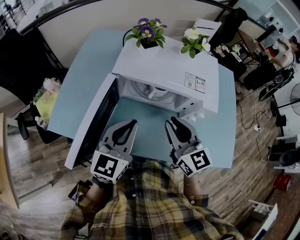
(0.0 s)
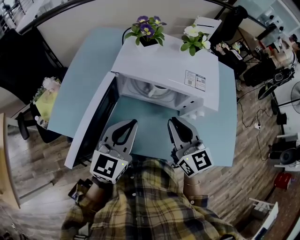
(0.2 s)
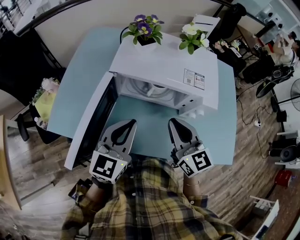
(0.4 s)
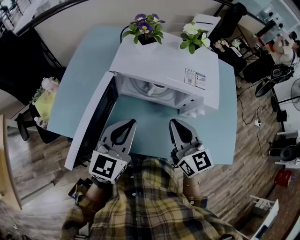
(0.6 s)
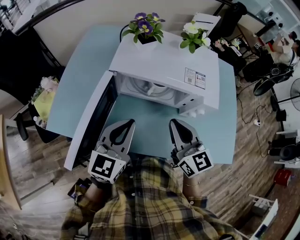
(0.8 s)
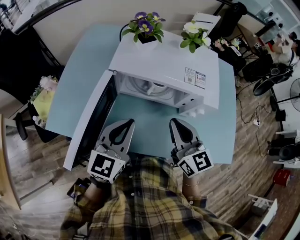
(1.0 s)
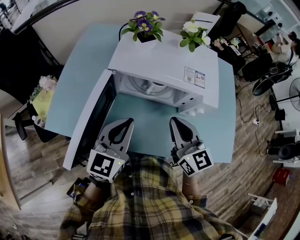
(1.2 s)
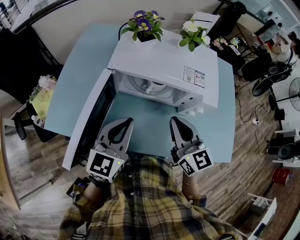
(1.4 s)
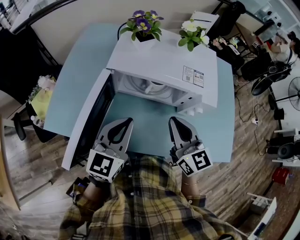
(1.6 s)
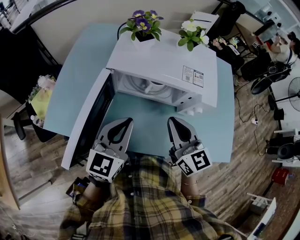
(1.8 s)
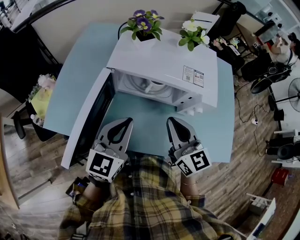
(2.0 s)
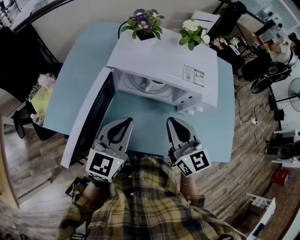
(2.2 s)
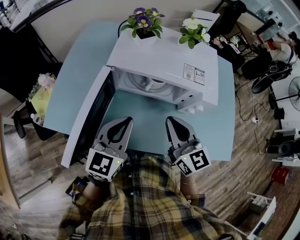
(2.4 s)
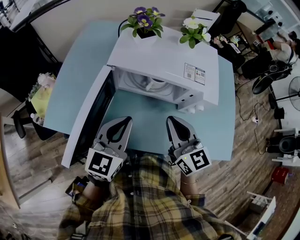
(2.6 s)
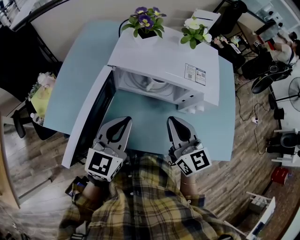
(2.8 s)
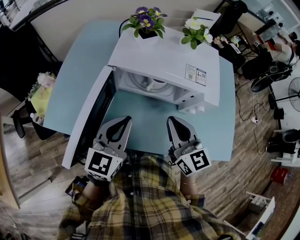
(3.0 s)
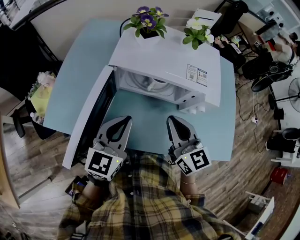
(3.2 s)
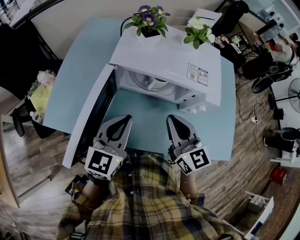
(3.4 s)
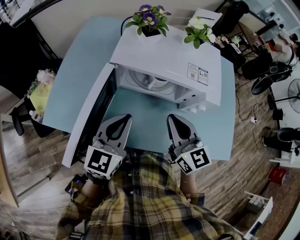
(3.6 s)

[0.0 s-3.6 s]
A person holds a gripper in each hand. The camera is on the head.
0.0 to 3.6 s: The grippers stay close to where they were, moving slightly.

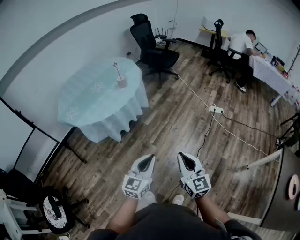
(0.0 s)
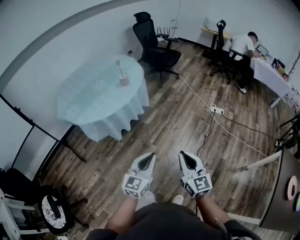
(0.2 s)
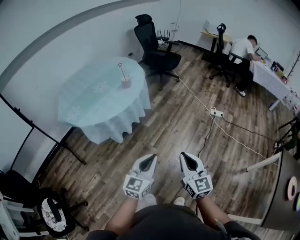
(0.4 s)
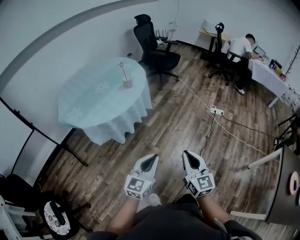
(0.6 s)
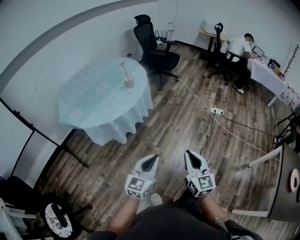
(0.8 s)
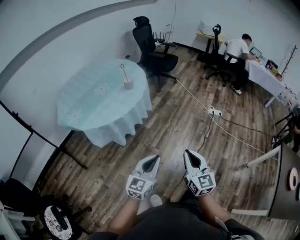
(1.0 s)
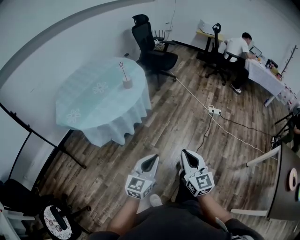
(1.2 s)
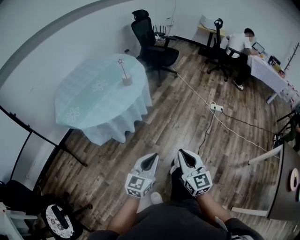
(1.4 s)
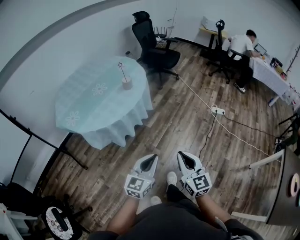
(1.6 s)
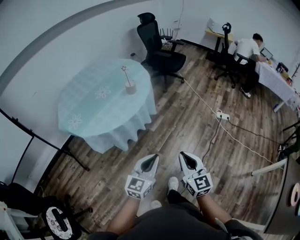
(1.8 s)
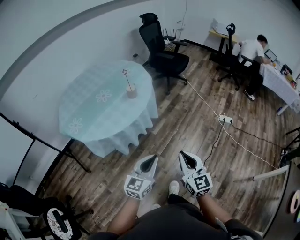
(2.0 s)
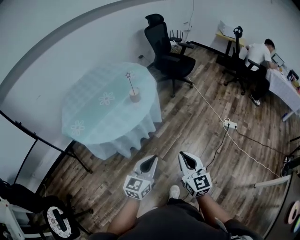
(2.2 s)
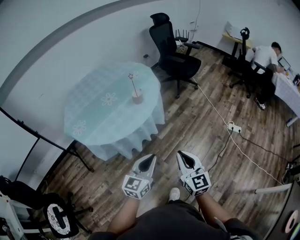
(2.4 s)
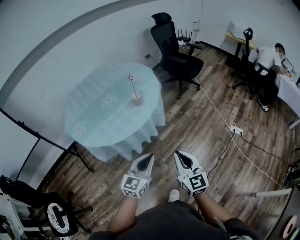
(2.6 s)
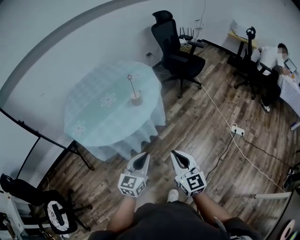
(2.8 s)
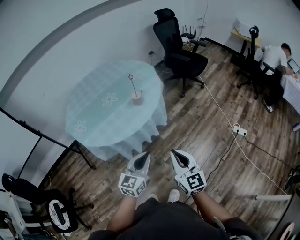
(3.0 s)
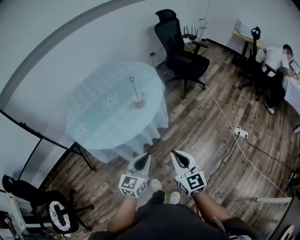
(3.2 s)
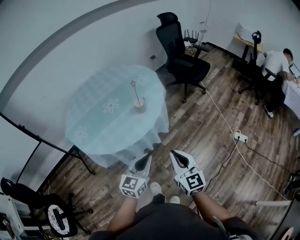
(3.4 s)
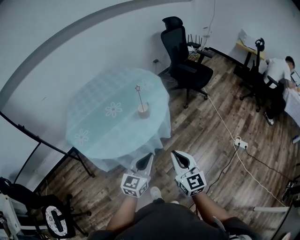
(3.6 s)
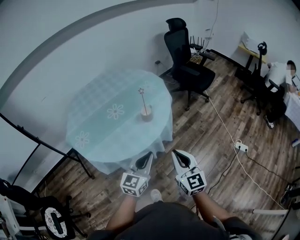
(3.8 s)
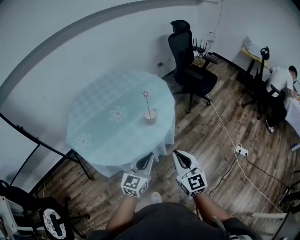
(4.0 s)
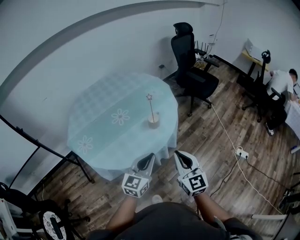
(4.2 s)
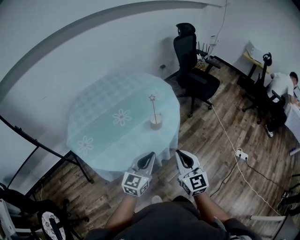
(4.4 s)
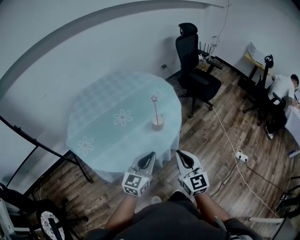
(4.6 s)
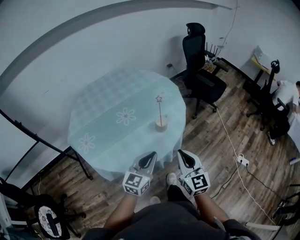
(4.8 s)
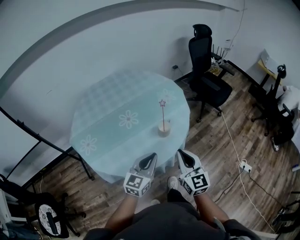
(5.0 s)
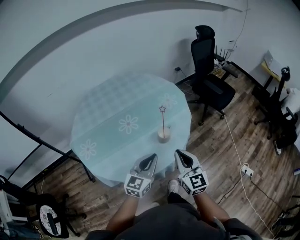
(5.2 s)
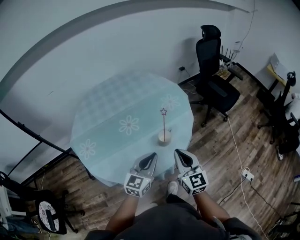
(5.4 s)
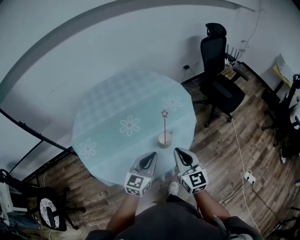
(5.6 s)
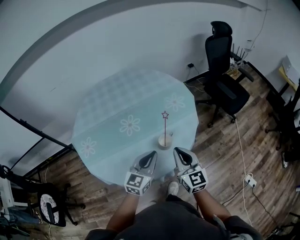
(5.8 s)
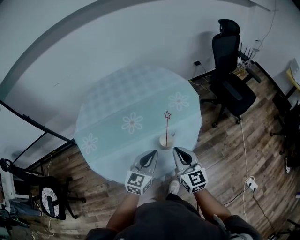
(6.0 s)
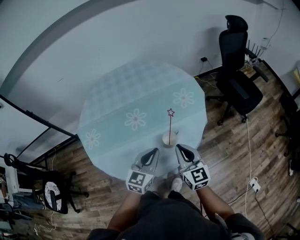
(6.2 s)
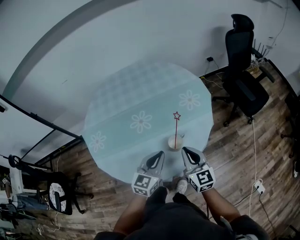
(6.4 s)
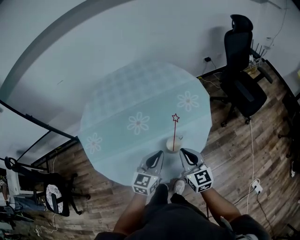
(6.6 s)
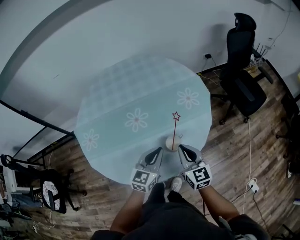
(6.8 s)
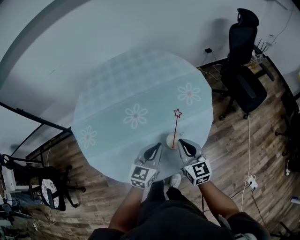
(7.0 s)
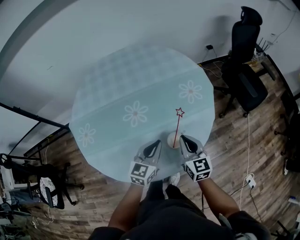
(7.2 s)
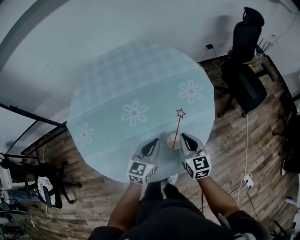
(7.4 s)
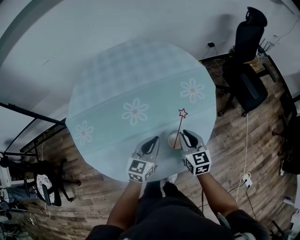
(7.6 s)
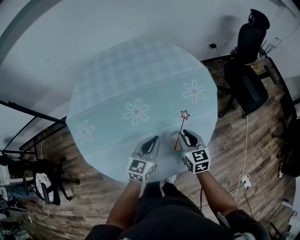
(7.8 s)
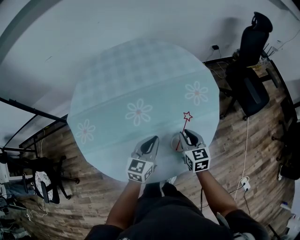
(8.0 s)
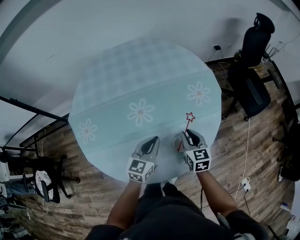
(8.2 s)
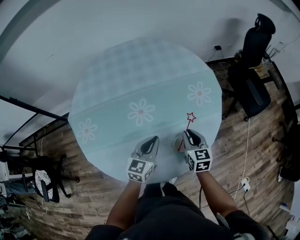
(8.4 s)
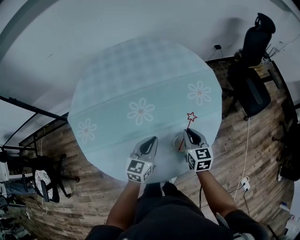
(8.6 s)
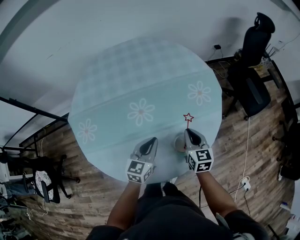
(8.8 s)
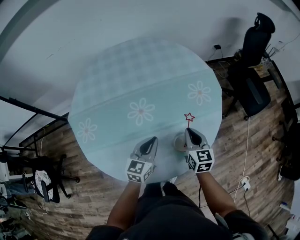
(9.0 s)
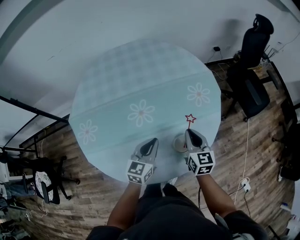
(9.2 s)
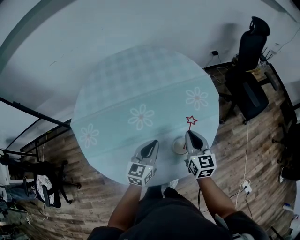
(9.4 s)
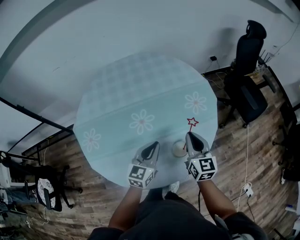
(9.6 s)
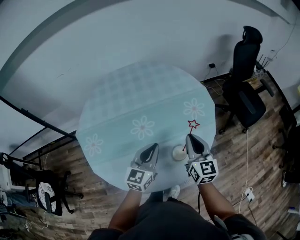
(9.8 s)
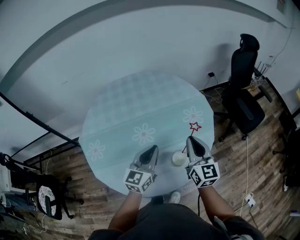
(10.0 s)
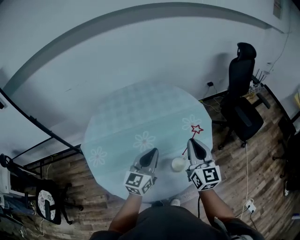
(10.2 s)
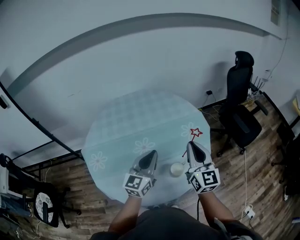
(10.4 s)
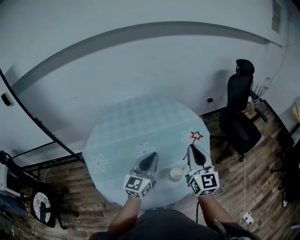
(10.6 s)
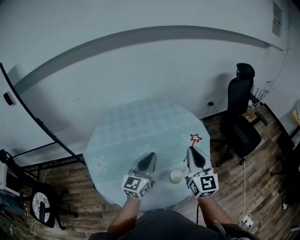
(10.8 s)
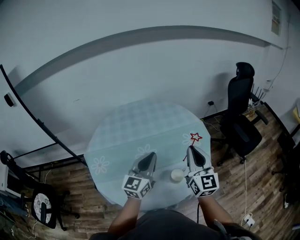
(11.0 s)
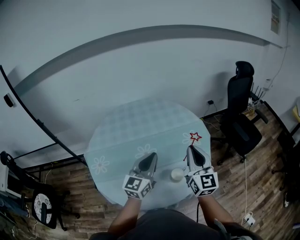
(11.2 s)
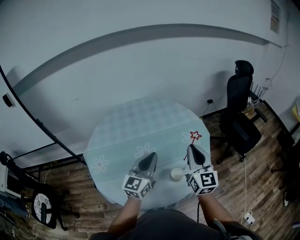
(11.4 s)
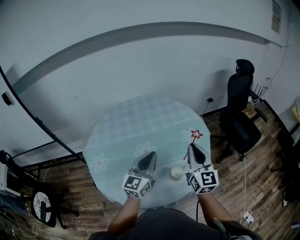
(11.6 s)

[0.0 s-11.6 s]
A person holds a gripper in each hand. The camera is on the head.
0.0 to 1.4 s: Both grippers move to the left, roughly 10 cm.
1.4 to 2.8 s: Both grippers travel together forward, some 30 cm.
2.8 to 4.4 s: The two grippers go some 25 cm forward and to the left.
4.4 to 5.8 s: The grippers both shift forward by some 20 cm.
5.8 to 7.2 s: The two grippers go about 15 cm forward and downward.
7.2 to 8.8 s: The left gripper goes approximately 5 cm to the left. The right gripper is displaced forward by some 5 cm.
8.8 to 10.2 s: Both grippers move upward, roughly 20 cm. The right gripper changes its angle by some 30 degrees.
10.2 to 11.6 s: The left gripper is displaced upward by roughly 5 cm.

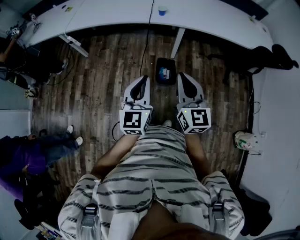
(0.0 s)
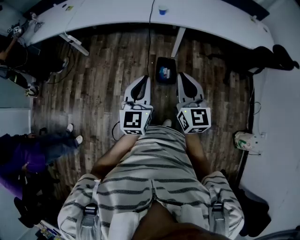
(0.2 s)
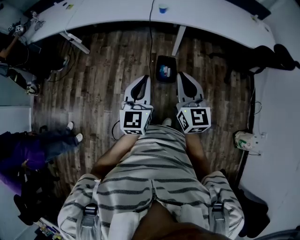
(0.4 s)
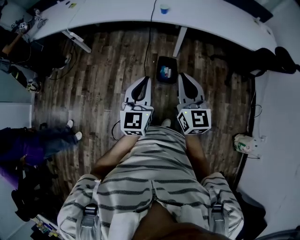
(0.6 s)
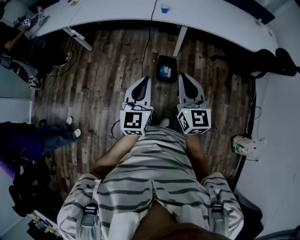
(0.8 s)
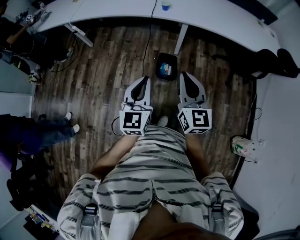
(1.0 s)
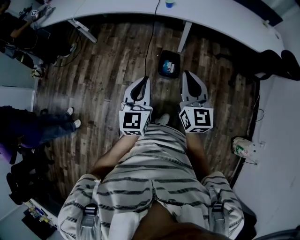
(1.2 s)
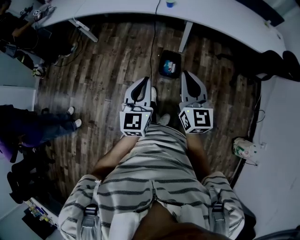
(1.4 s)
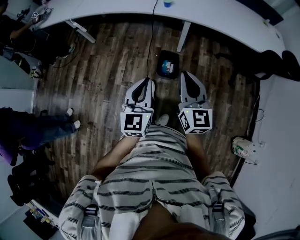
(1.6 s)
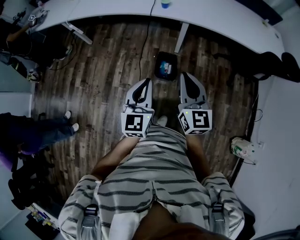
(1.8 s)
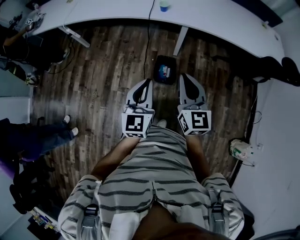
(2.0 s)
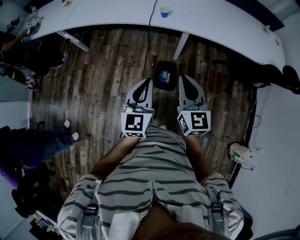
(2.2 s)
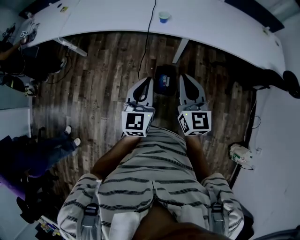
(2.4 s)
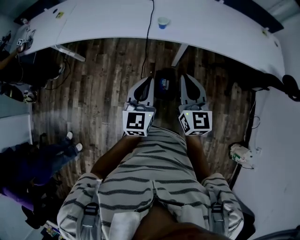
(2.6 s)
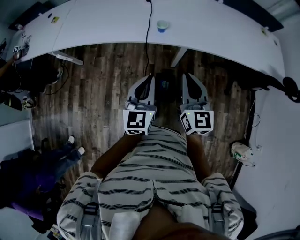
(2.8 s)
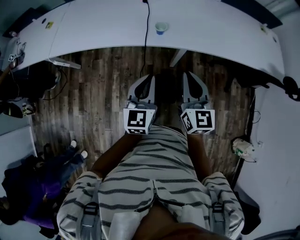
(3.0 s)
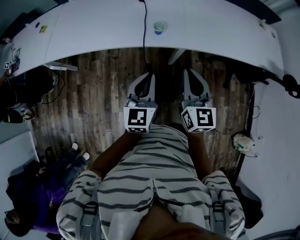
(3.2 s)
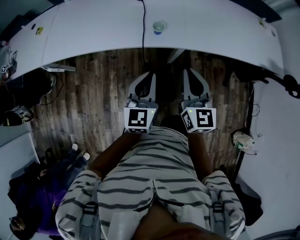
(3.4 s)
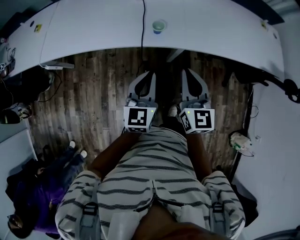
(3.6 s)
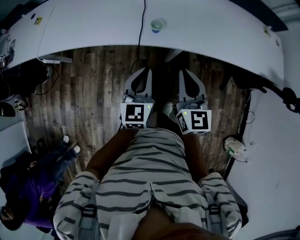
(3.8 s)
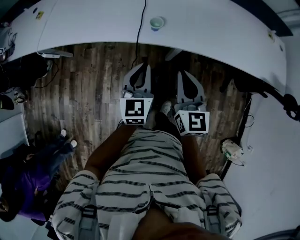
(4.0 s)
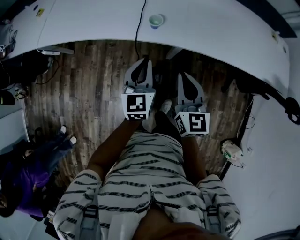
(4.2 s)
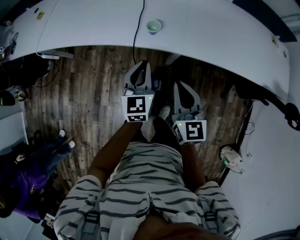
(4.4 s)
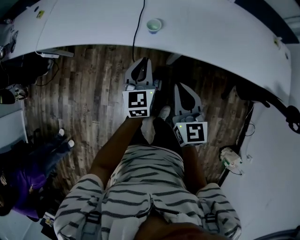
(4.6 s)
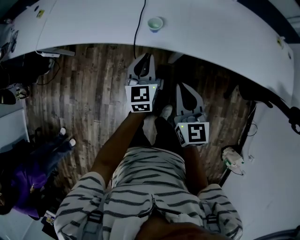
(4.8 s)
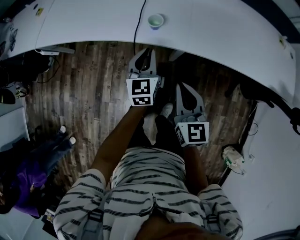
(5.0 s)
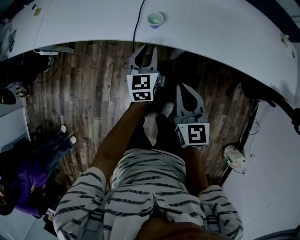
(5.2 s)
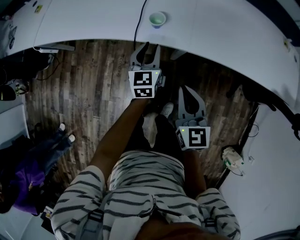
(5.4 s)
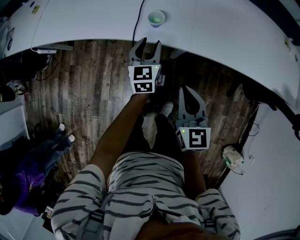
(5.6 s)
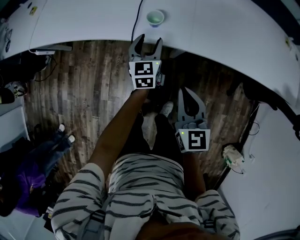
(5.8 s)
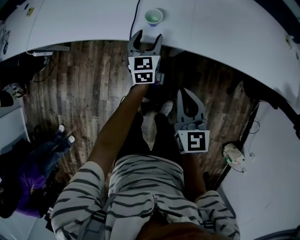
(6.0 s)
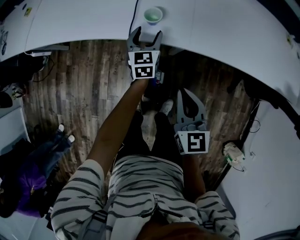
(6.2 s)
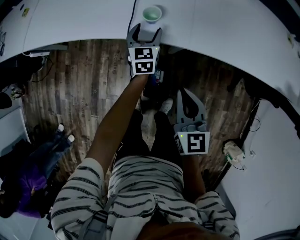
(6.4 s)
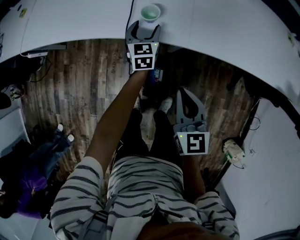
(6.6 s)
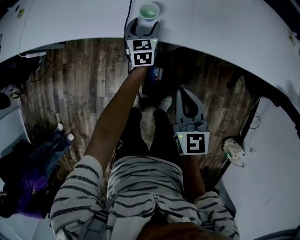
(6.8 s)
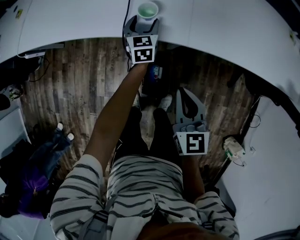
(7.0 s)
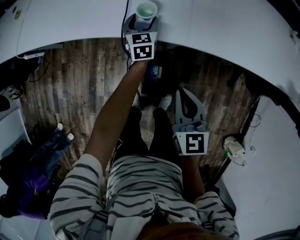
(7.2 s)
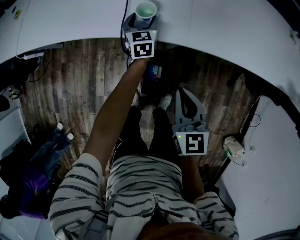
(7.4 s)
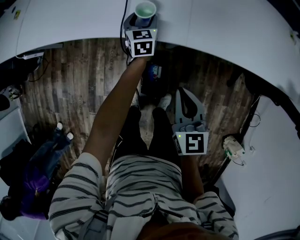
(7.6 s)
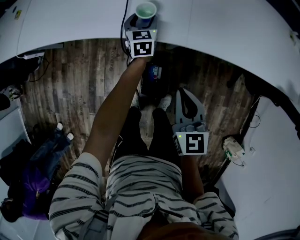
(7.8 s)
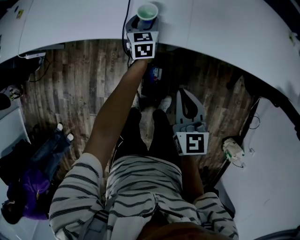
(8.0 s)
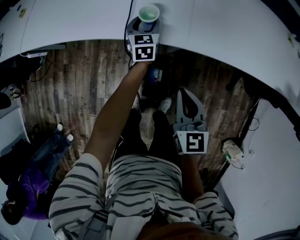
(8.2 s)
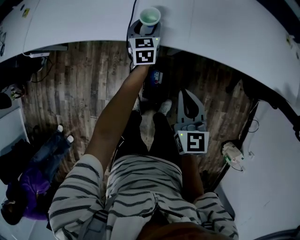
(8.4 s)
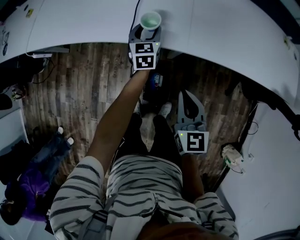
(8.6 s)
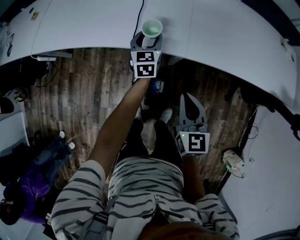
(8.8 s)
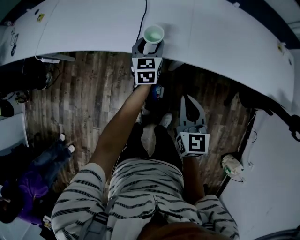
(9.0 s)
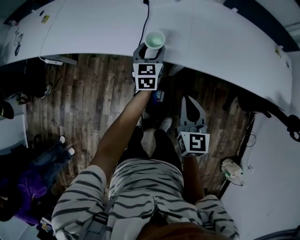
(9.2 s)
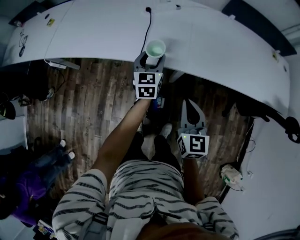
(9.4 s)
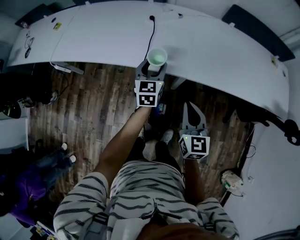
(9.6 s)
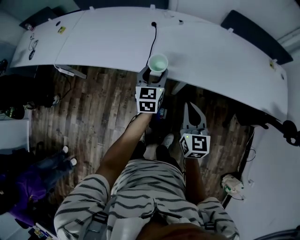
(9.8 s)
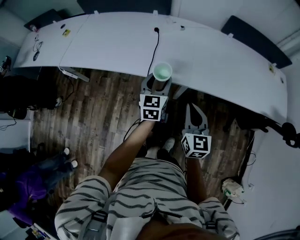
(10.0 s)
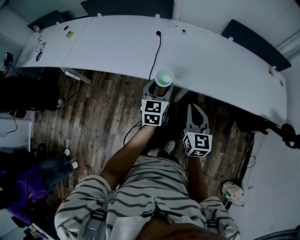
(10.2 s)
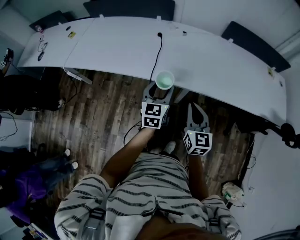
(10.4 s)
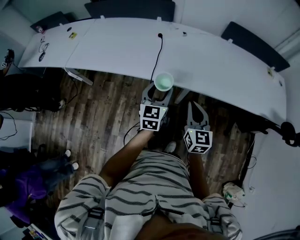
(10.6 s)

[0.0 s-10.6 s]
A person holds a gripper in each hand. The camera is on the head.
0.0 to 1.6 s: The grippers both shift to the right by roughly 5 cm.
1.6 to 3.0 s: The grippers both shift forward by roughly 35 cm.
3.0 to 4.6 s: The right gripper shifts about 10 cm downward, forward and to the right. The left gripper is displaced forward, downward and to the right by about 20 cm.
4.6 to 6.0 s: The right gripper shifts about 5 cm downward; the left gripper is displaced forward and downward by approximately 15 cm, and opens up.
6.0 to 7.6 s: The left gripper goes about 10 cm forward and downward.
7.6 to 9.0 s: The left gripper travels upward and backward by about 15 cm. Meanwhile the right gripper is displaced upward by roughly 5 cm.
9.0 to 10.6 s: The right gripper heads upward, covering some 10 cm. The left gripper shifts roughly 20 cm backward and upward.
